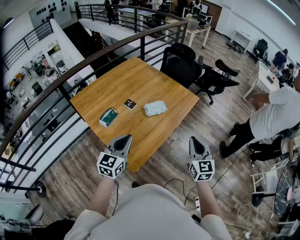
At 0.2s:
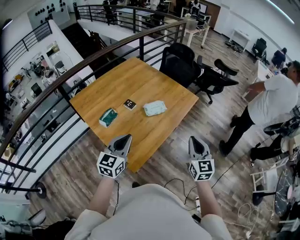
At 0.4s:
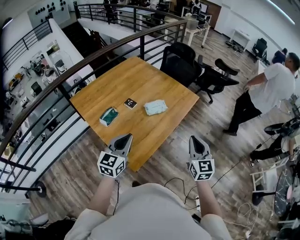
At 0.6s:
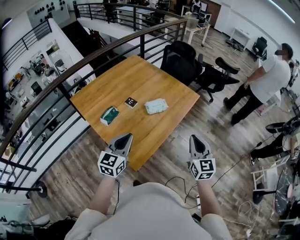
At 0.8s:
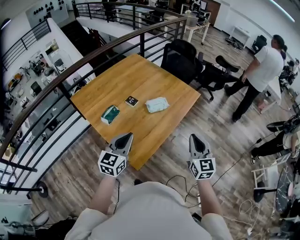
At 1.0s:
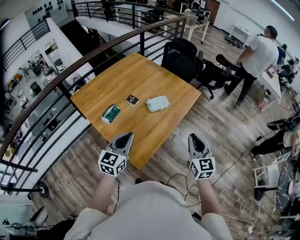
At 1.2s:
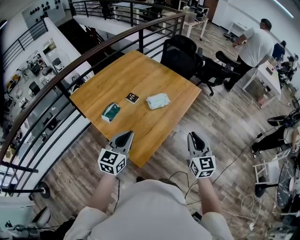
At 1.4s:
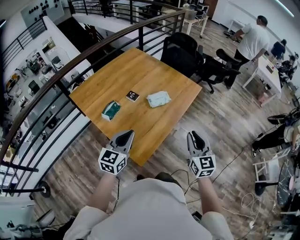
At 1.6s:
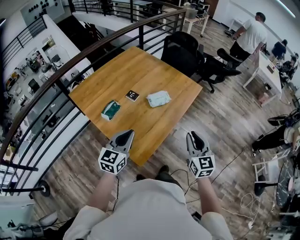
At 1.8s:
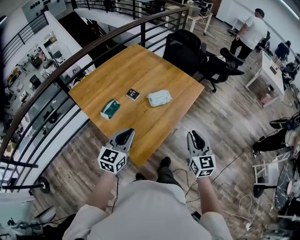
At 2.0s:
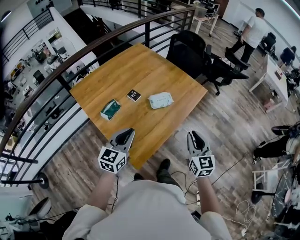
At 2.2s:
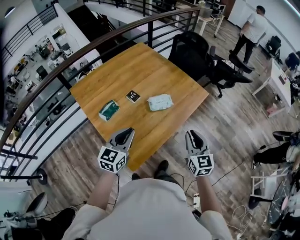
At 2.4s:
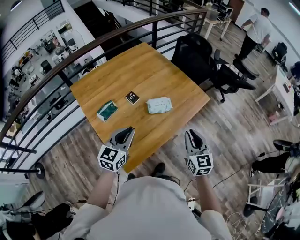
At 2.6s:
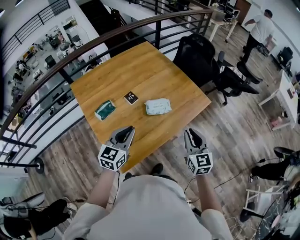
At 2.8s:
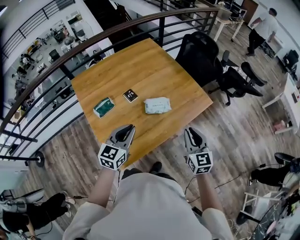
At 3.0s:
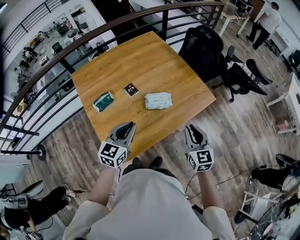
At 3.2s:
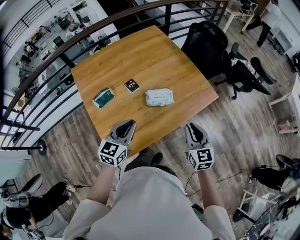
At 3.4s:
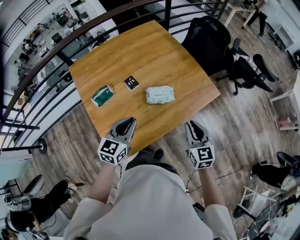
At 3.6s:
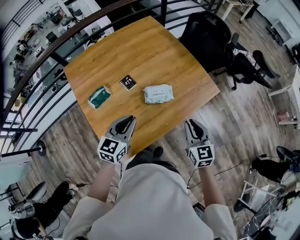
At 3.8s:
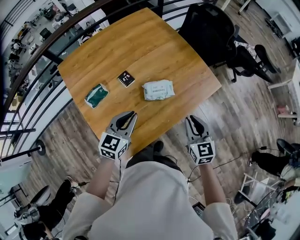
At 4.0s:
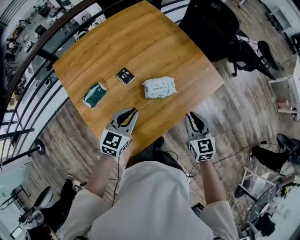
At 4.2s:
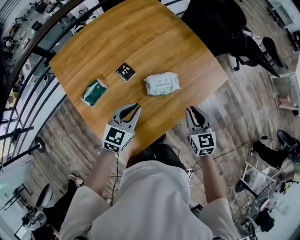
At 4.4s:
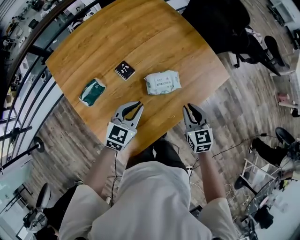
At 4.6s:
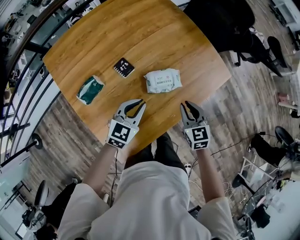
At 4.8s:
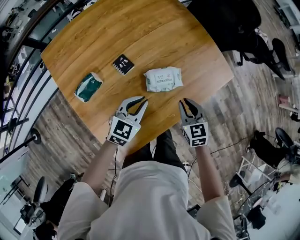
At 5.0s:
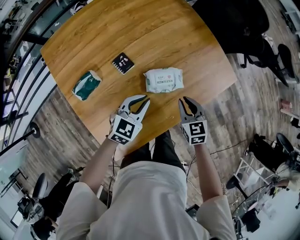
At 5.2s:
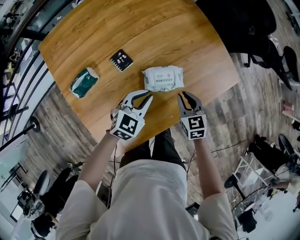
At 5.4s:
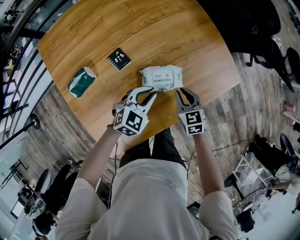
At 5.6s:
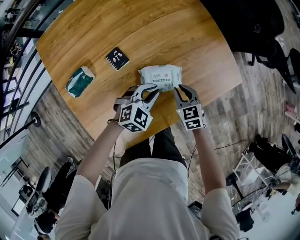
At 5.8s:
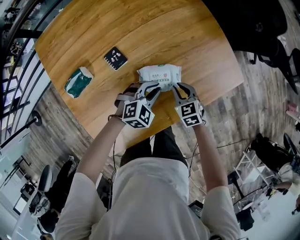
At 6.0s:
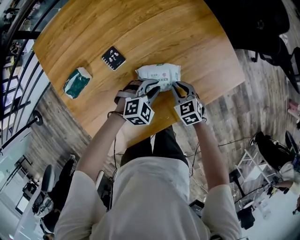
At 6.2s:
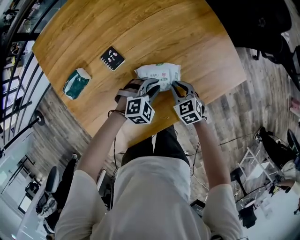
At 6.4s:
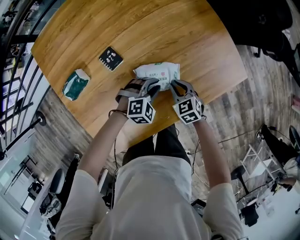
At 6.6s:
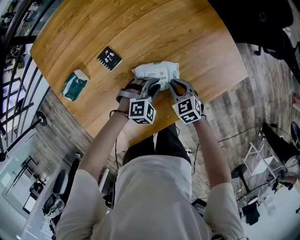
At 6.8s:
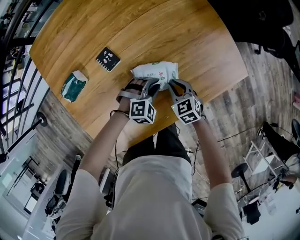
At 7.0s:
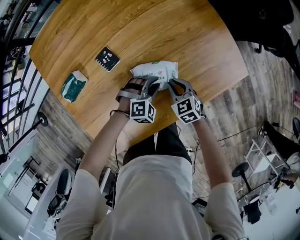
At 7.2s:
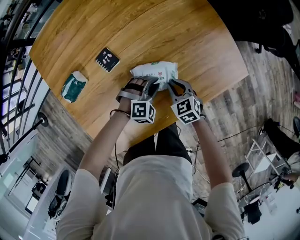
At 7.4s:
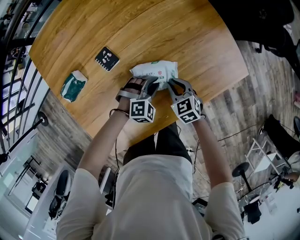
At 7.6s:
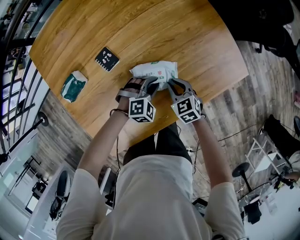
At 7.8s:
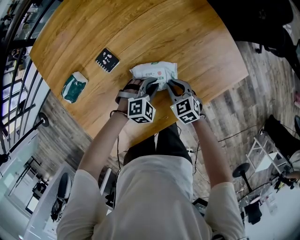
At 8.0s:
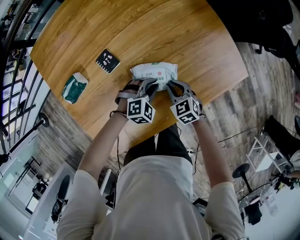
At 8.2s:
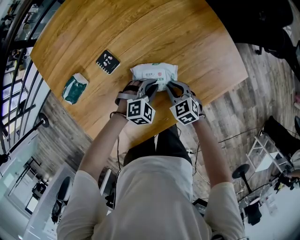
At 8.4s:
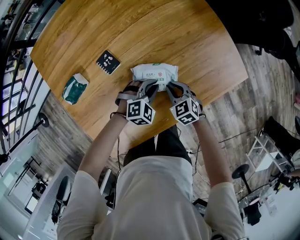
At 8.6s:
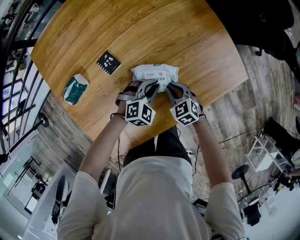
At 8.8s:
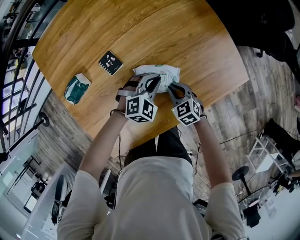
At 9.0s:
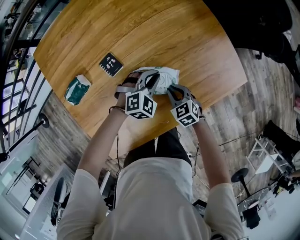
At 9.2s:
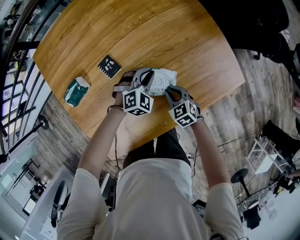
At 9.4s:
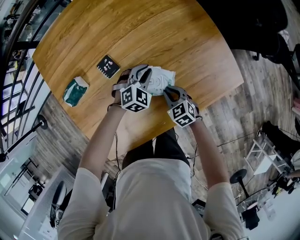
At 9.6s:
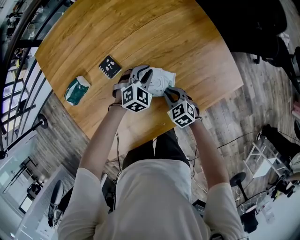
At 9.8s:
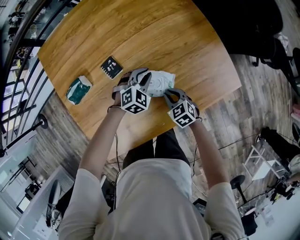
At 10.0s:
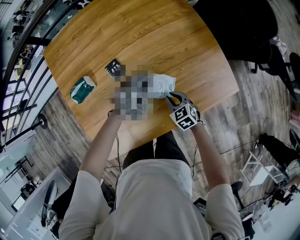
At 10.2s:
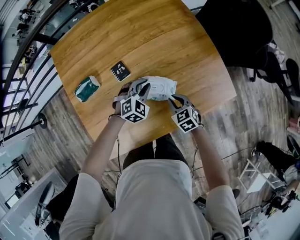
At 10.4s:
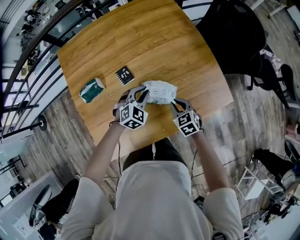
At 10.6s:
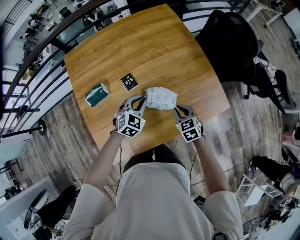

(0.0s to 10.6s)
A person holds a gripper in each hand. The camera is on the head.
0.0s - 1.6s: The right gripper shifts approximately 5 cm to the left.
1.6s - 3.0s: Both grippers travel together forward and to the right, some 20 cm. The right gripper changes its angle by some 20 degrees.
3.0s - 4.6s: The right gripper shifts roughly 25 cm downward, forward and to the left, while the left gripper is displaced downward and forward by roughly 20 cm.
4.6s - 6.0s: The right gripper heads downward and forward, covering some 20 cm, and turns by some 30 degrees; the left gripper goes about 20 cm downward, to the right and forward, and rotates roughly 40 degrees.
6.0s - 7.6s: The left gripper is displaced downward by about 5 cm.
7.6s - 9.0s: The left gripper is displaced forward and upward by about 10 cm.
9.0s - 10.6s: The left gripper shifts roughly 15 cm upward and to the left, and turns by roughly 30 degrees; the right gripper shifts approximately 15 cm upward.

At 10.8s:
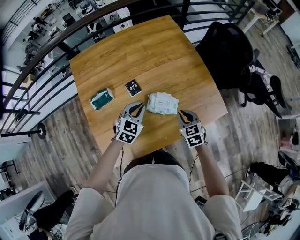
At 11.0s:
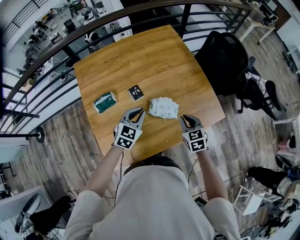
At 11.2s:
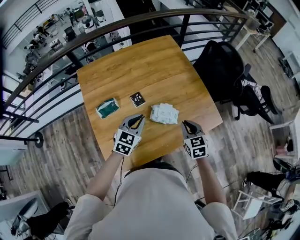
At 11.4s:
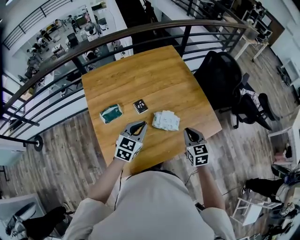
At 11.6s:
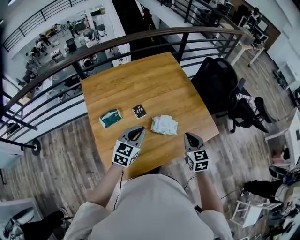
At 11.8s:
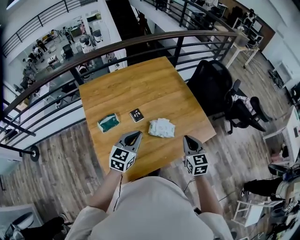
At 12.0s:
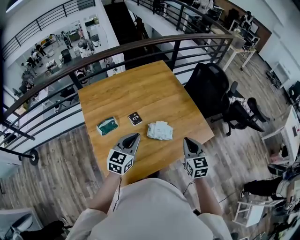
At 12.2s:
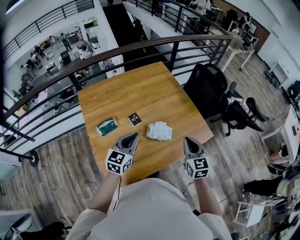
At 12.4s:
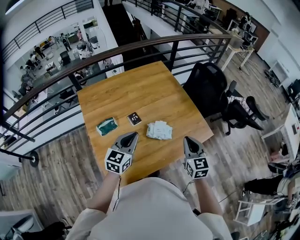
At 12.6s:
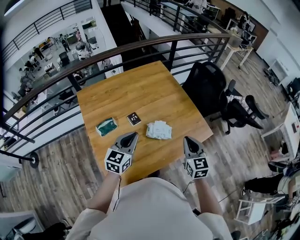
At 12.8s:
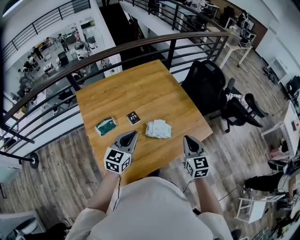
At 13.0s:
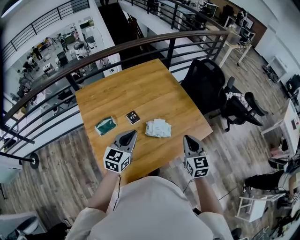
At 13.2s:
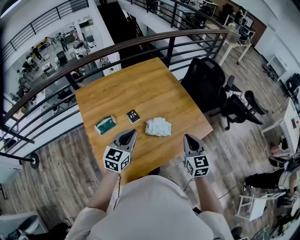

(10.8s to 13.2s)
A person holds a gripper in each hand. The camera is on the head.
10.8s - 12.0s: The two grippers go approximately 20 cm upward and backward. The left gripper turns by about 30 degrees. Meanwhile the right gripper rotates about 20 degrees.
12.0s - 13.2s: The grippers make only small movements.

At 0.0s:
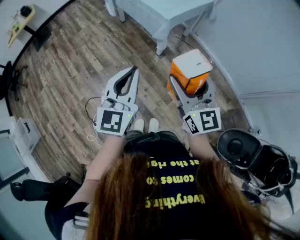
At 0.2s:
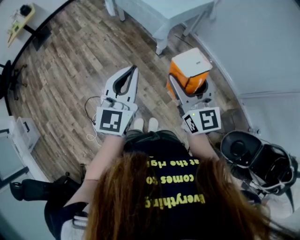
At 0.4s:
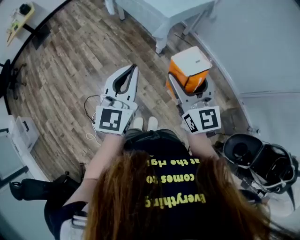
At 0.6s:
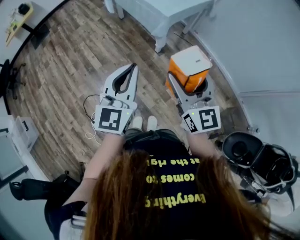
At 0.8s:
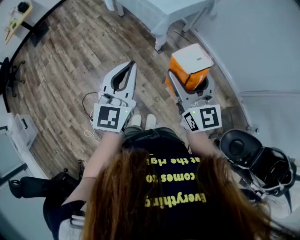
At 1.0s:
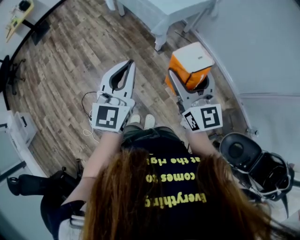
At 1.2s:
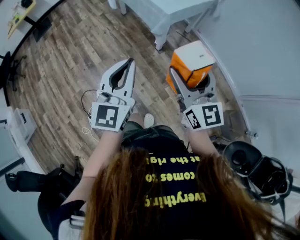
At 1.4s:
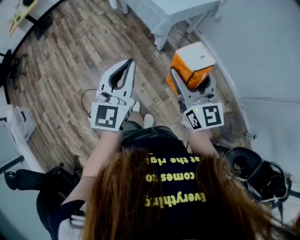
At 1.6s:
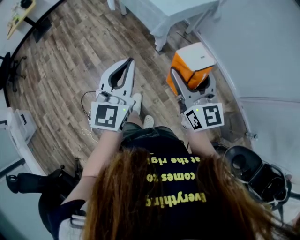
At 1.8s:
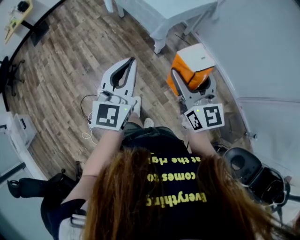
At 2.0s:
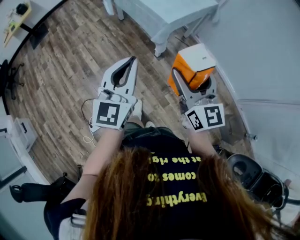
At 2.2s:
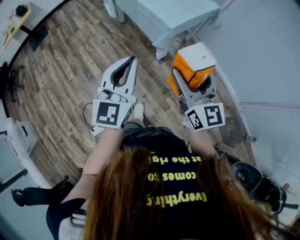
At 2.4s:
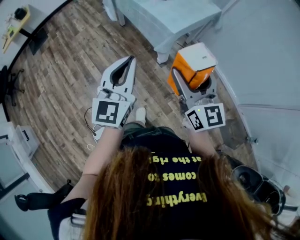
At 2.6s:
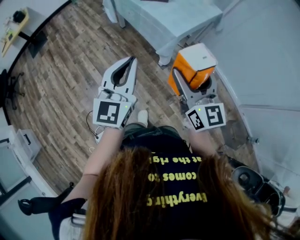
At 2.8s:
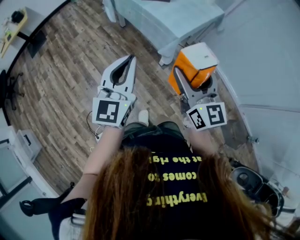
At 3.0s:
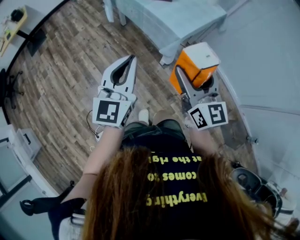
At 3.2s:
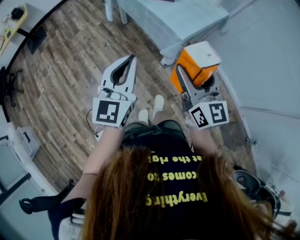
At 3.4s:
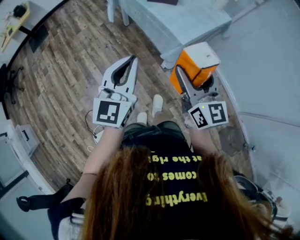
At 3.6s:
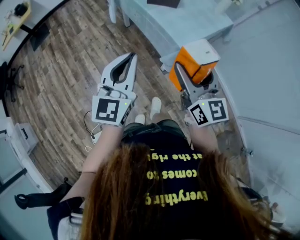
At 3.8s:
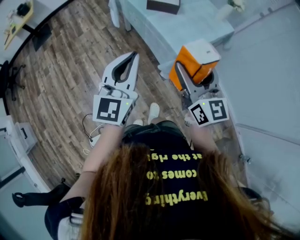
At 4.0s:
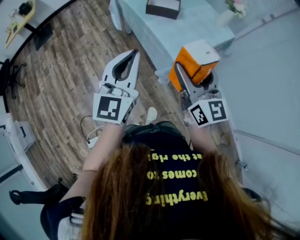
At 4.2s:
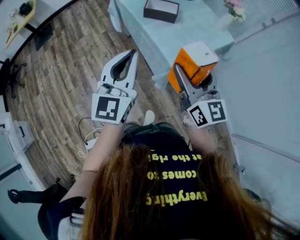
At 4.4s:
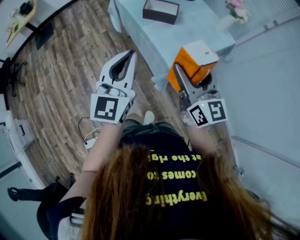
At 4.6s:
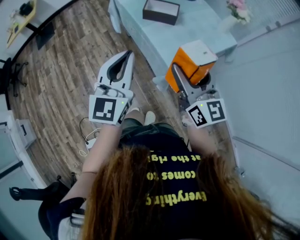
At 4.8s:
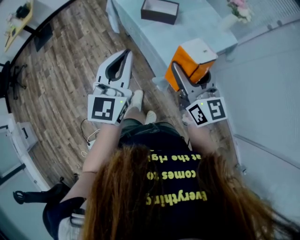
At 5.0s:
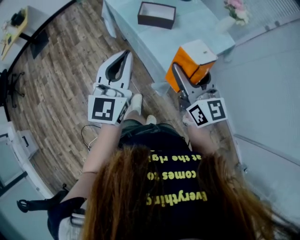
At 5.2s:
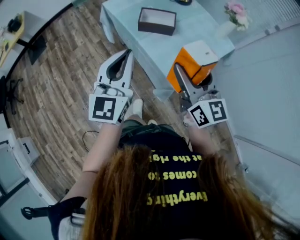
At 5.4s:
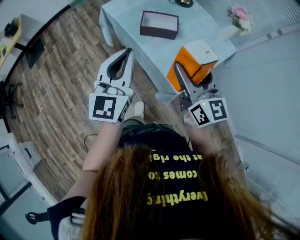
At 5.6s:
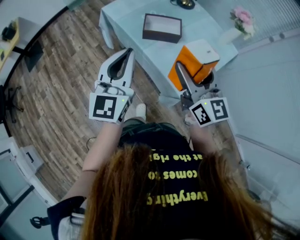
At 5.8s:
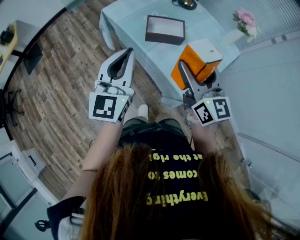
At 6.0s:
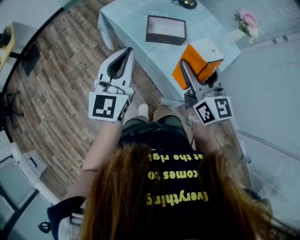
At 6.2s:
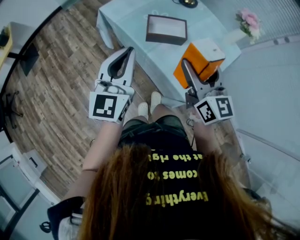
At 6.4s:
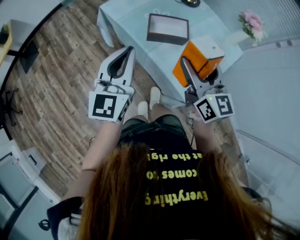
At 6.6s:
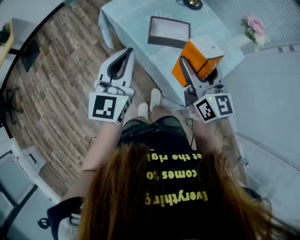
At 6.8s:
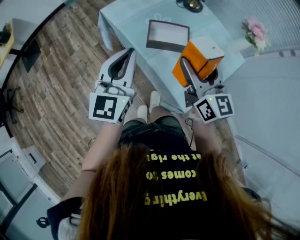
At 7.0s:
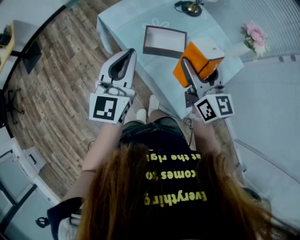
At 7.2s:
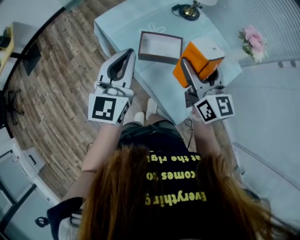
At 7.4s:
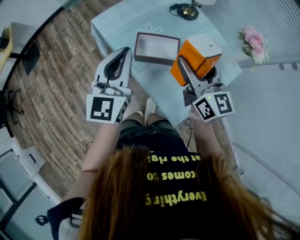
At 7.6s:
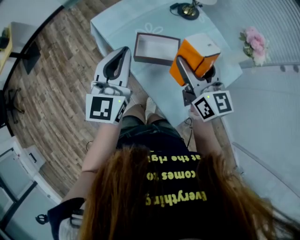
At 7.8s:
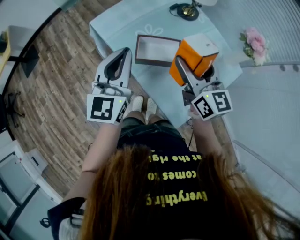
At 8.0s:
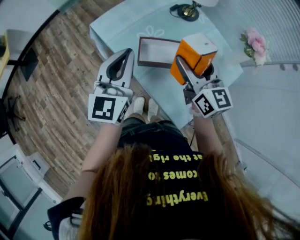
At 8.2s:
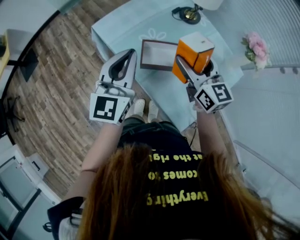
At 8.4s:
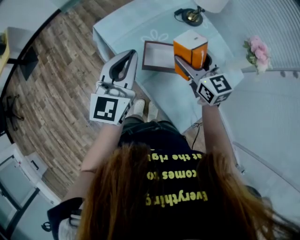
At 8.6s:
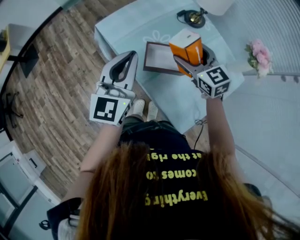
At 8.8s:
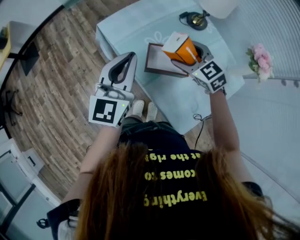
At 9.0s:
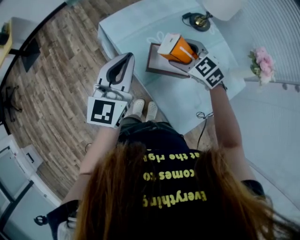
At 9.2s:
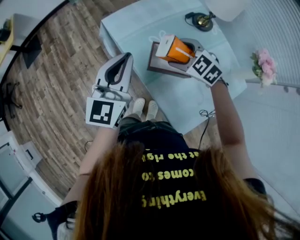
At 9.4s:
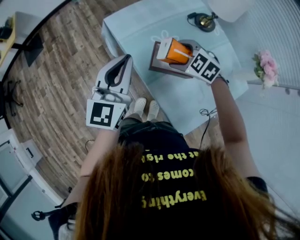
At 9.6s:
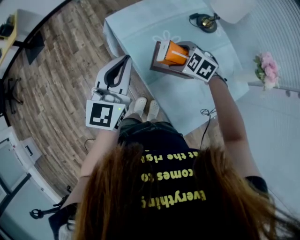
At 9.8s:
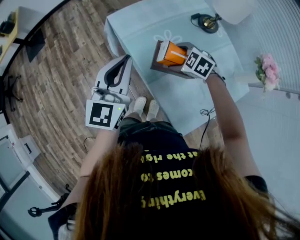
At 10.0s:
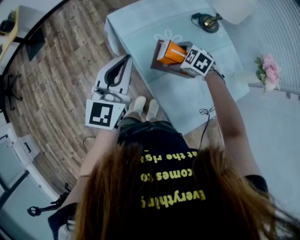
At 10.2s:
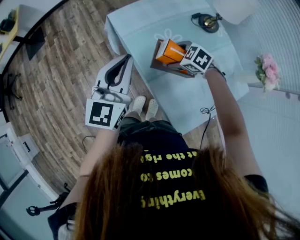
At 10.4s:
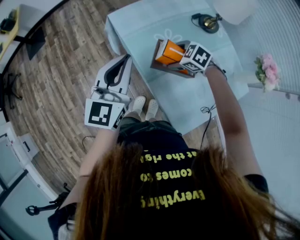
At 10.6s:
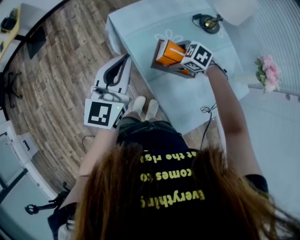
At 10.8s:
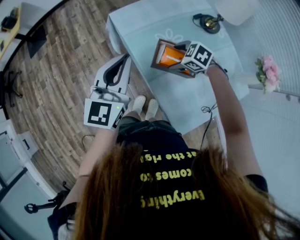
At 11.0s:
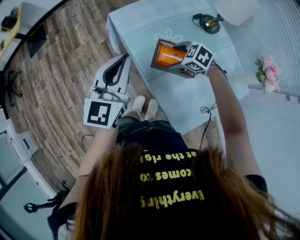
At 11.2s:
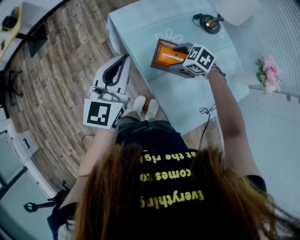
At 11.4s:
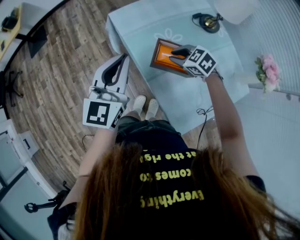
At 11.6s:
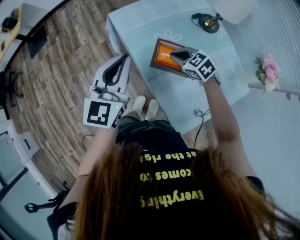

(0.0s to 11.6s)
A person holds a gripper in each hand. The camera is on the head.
0.0s - 1.4s: The grippers make only small movements.
1.4s - 2.8s: The grippers both shift forward and to the left by roughly 20 cm.
2.8s - 4.4s: The left gripper moves forward and to the right, about 20 cm. Meanwhile the right gripper travels forward by approximately 25 cm.
4.4s - 5.8s: The two grippers go about 20 cm forward.
5.8s - 7.2s: Both grippers move forward, roughly 15 cm.
7.2s - 8.8s: The right gripper travels forward, downward and to the left by about 20 cm, and angles its fingers downward, by approximately 40 degrees. Meanwhile the left gripper goes some 5 cm forward.
8.8s - 10.2s: The right gripper shifts about 10 cm downward, and rotates some 30 degrees.
10.2s - 11.6s: The right gripper closes.
